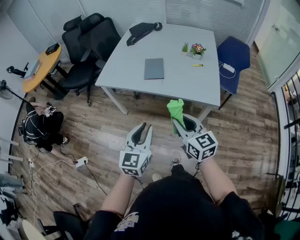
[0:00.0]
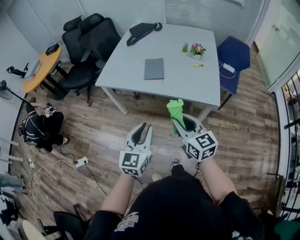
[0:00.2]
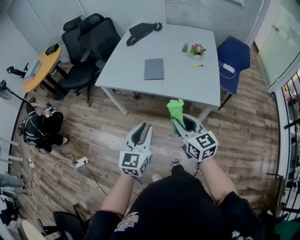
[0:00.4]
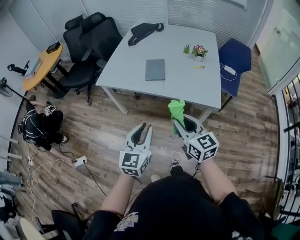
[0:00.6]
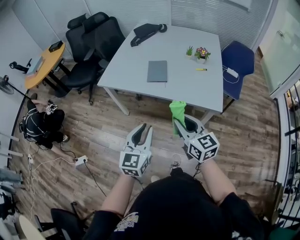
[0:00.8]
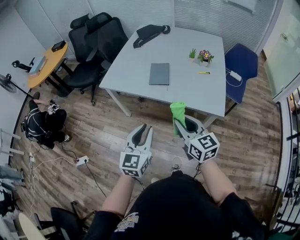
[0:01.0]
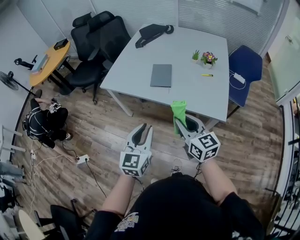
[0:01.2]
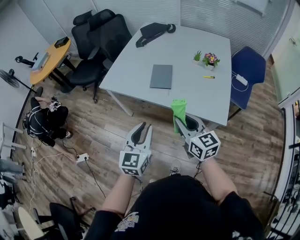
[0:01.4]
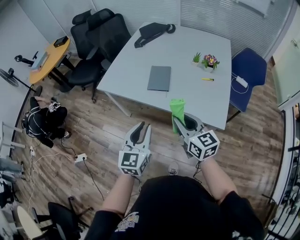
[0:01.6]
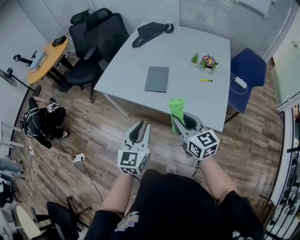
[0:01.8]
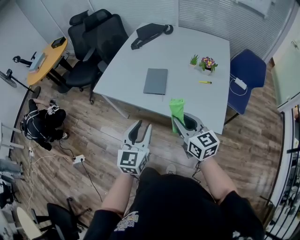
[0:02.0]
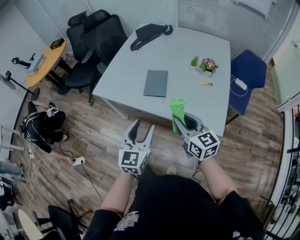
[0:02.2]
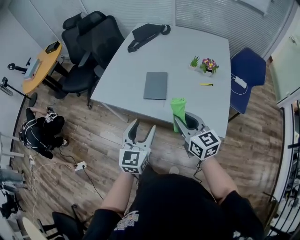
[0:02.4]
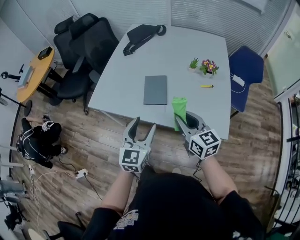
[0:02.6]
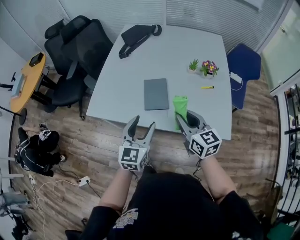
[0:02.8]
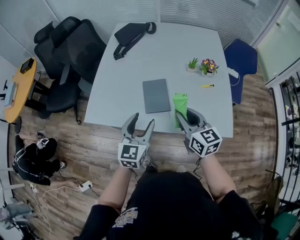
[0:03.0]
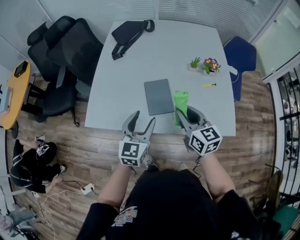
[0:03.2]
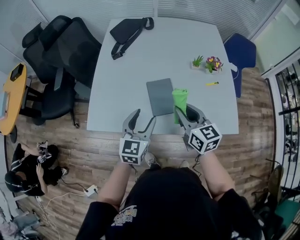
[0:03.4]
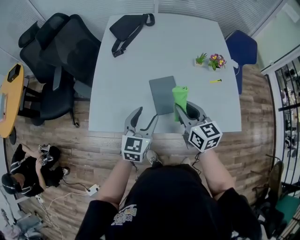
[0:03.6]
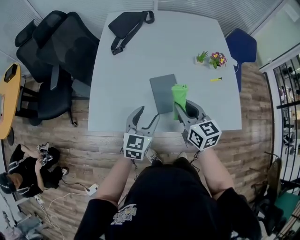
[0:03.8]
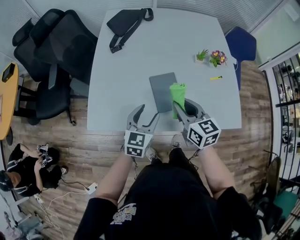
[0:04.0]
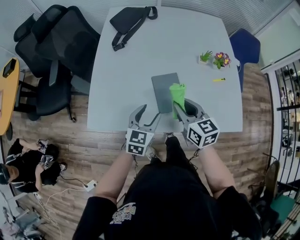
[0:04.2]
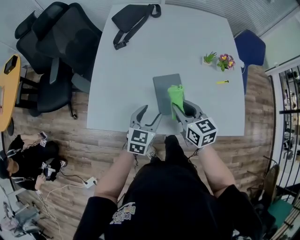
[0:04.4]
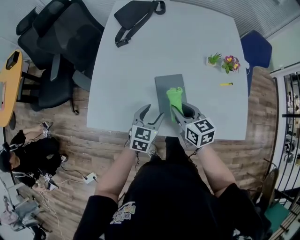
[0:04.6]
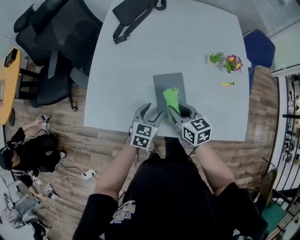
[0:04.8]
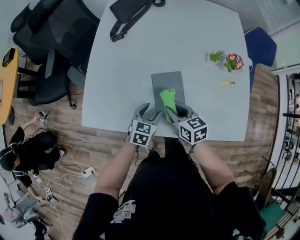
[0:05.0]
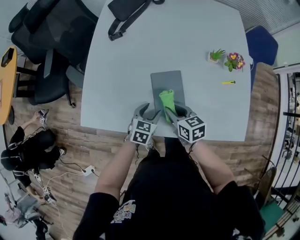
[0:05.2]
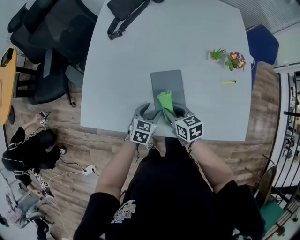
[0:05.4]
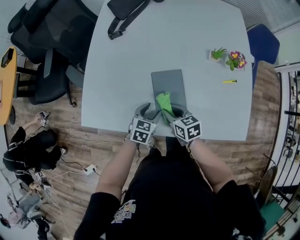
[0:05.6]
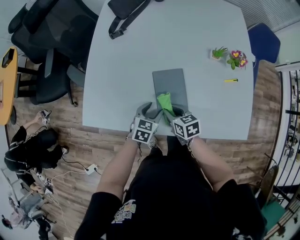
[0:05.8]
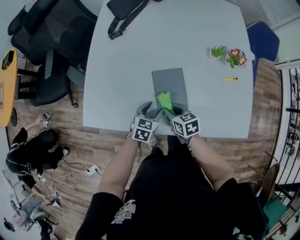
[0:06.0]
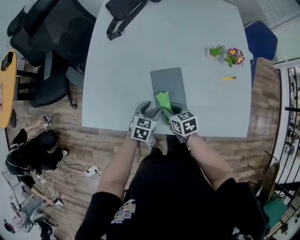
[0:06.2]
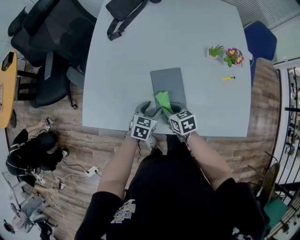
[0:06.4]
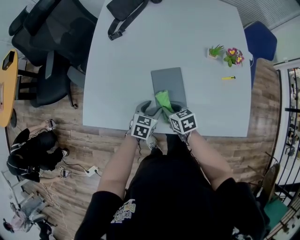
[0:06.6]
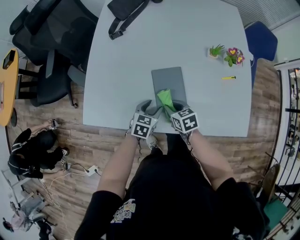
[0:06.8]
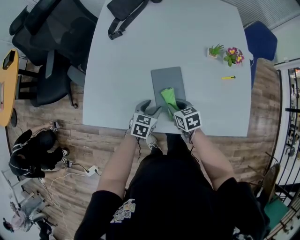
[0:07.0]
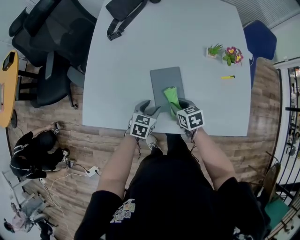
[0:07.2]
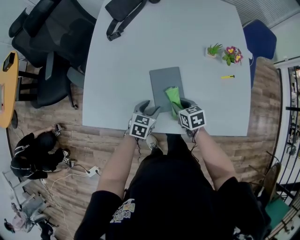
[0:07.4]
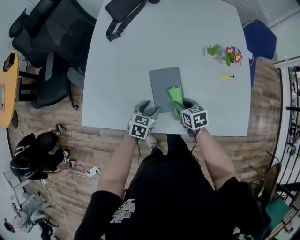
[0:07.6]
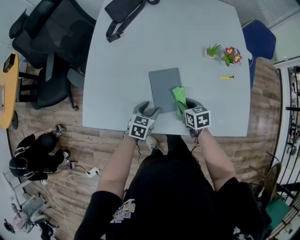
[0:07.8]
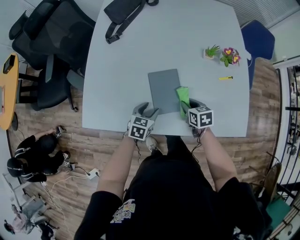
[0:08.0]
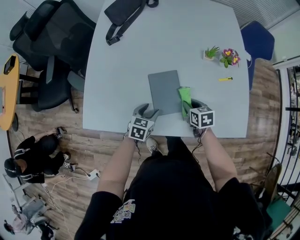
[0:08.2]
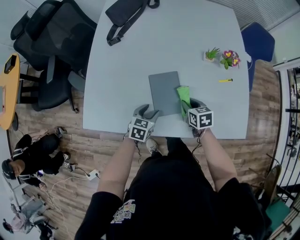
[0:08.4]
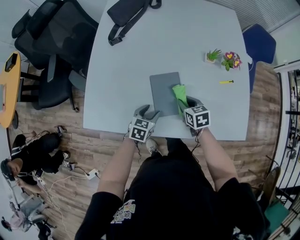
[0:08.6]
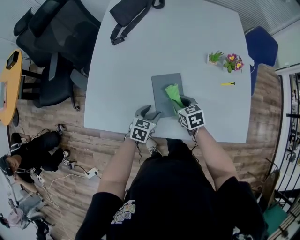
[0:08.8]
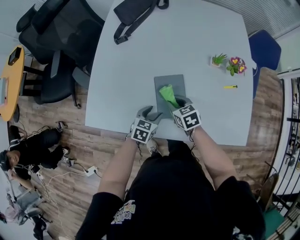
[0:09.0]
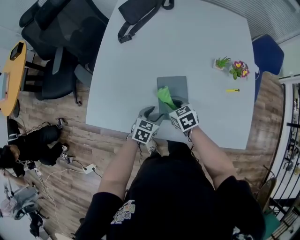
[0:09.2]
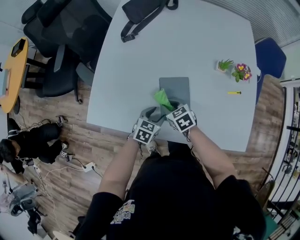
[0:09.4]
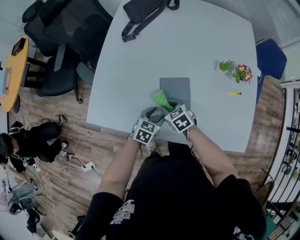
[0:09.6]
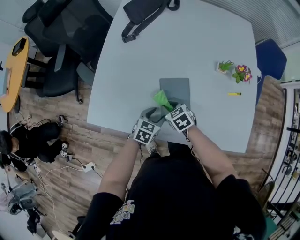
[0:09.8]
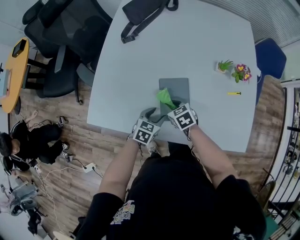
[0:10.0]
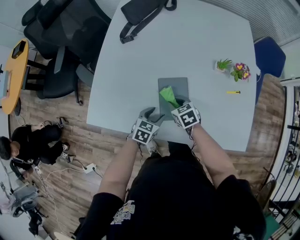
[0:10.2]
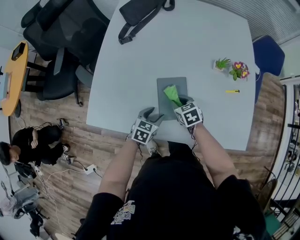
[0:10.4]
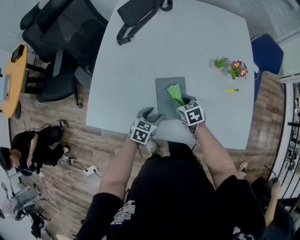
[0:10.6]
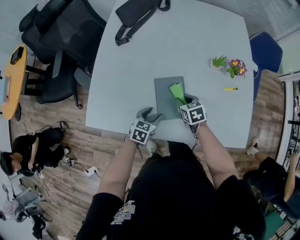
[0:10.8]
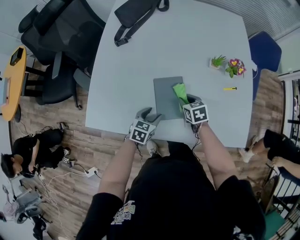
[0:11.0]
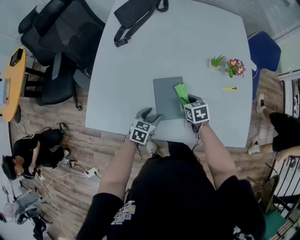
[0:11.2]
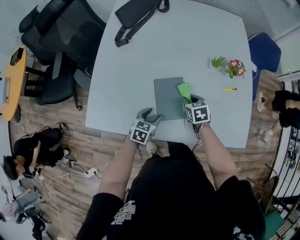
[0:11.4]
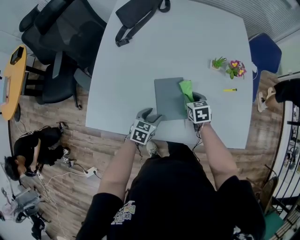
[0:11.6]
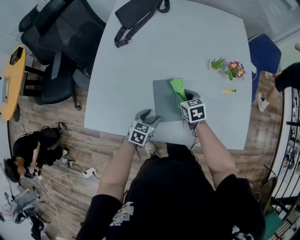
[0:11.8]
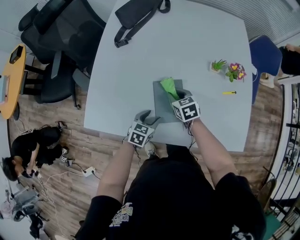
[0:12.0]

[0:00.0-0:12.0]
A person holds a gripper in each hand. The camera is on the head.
0:00.0 to 0:01.6: Both grippers move forward, roughly 10 cm.
0:01.6 to 0:03.0: The grippers both shift forward by approximately 20 cm. The left gripper opens.
0:03.0 to 0:04.4: The right gripper is displaced to the left, forward and downward by roughly 15 cm; the left gripper shifts roughly 15 cm downward, forward and to the left.
0:04.4 to 0:06.0: Both grippers move downward, about 15 cm. The right gripper changes its angle by about 20 degrees.
0:06.0 to 0:07.6: The right gripper heads to the right, covering about 5 cm.
0:07.6 to 0:09.0: The right gripper moves to the left, some 5 cm.
0:09.0 to 0:10.4: The grippers make only small movements.
0:10.4 to 0:12.0: The right gripper moves approximately 10 cm to the right and comes back.

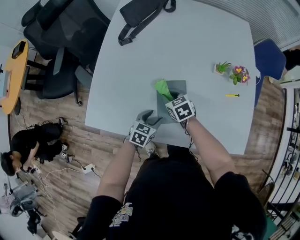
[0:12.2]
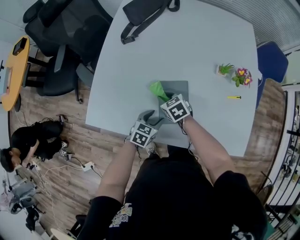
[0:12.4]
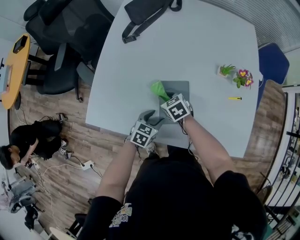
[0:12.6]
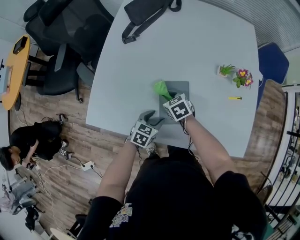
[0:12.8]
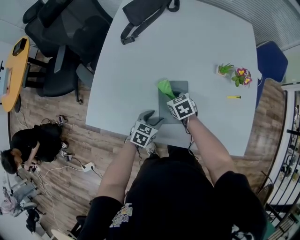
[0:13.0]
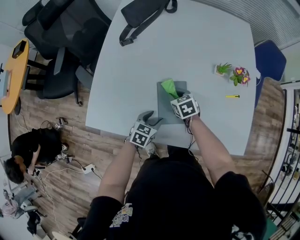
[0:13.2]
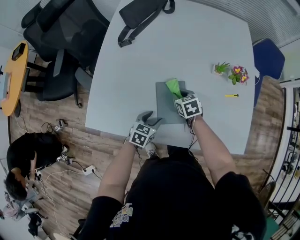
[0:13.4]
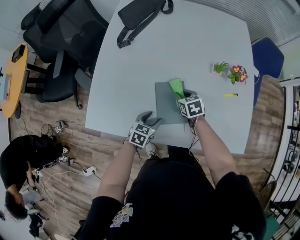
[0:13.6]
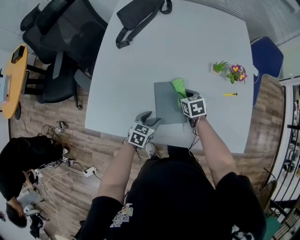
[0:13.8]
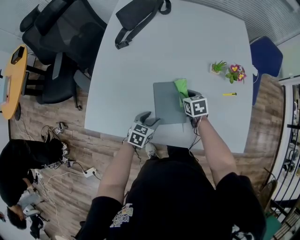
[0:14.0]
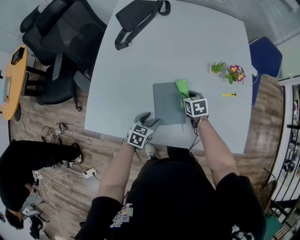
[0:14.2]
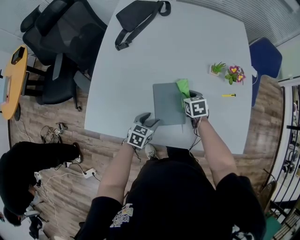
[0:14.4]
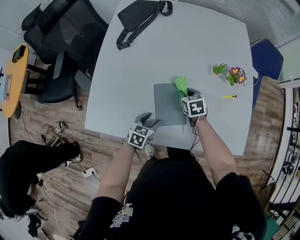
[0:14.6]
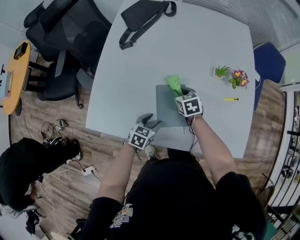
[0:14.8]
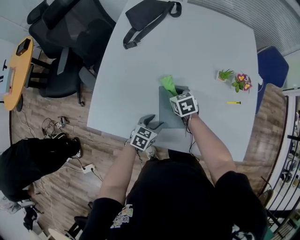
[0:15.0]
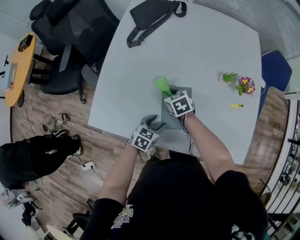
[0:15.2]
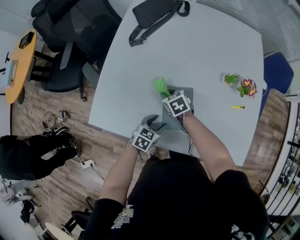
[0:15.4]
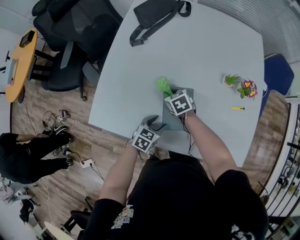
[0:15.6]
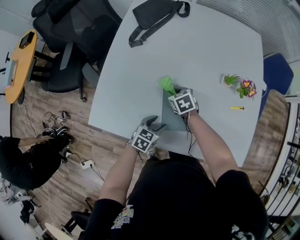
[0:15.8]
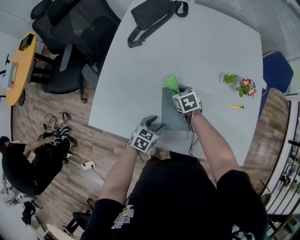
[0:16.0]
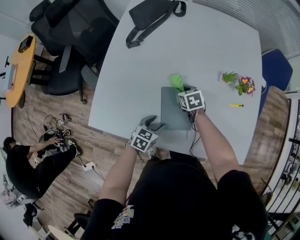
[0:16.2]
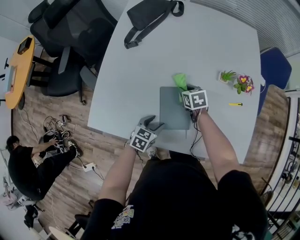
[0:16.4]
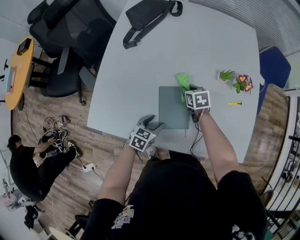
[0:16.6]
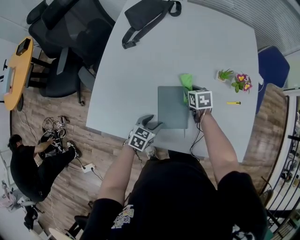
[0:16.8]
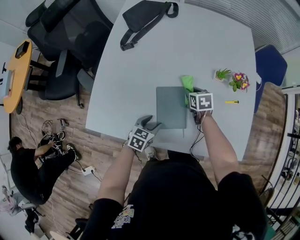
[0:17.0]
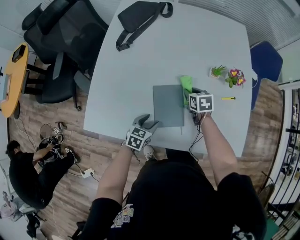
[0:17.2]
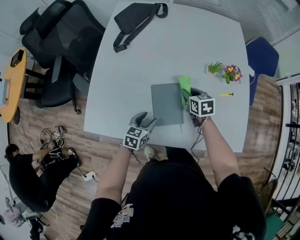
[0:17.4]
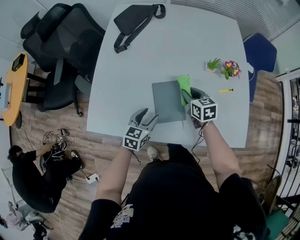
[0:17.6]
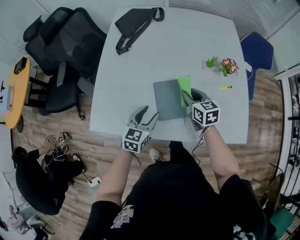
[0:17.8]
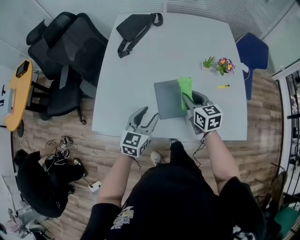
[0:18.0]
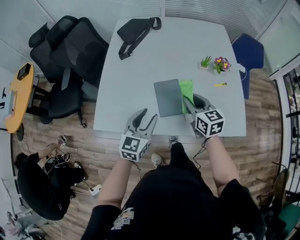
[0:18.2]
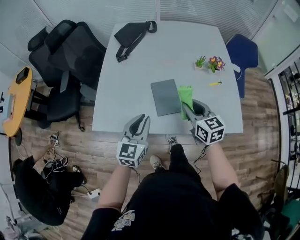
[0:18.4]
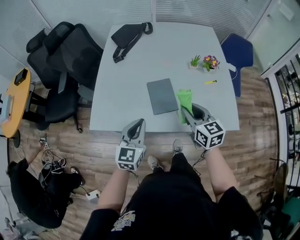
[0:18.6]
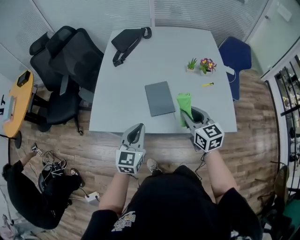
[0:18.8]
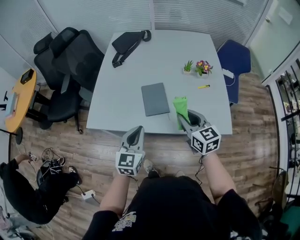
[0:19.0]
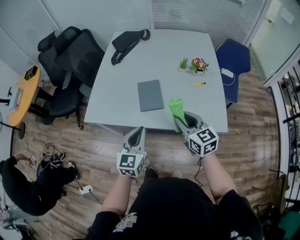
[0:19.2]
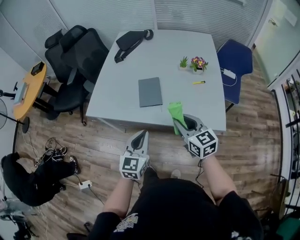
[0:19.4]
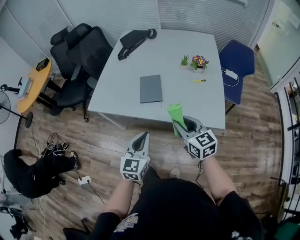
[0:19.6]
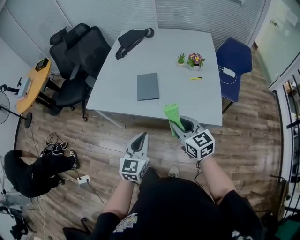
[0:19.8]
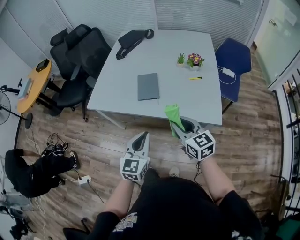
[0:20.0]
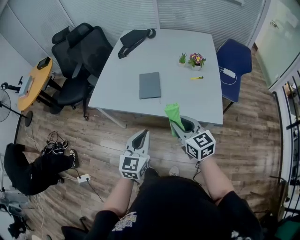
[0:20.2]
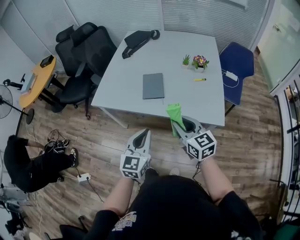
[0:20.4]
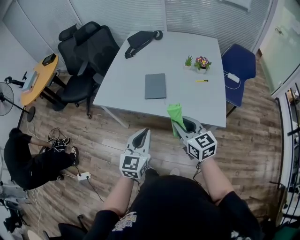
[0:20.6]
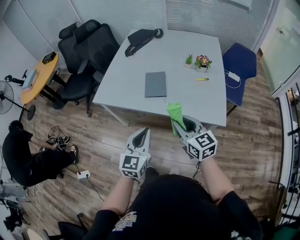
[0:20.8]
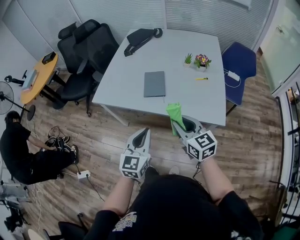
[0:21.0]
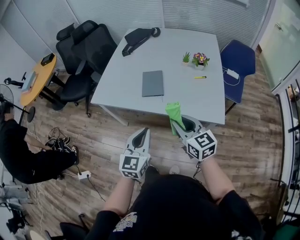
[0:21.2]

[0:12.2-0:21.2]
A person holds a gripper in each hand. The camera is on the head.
0:12.2 to 0:13.8: The right gripper moves to the right, about 10 cm.
0:13.8 to 0:15.2: The right gripper heads to the left, covering approximately 10 cm.
0:15.2 to 0:16.6: The right gripper travels to the right by some 10 cm.
0:16.6 to 0:18.2: The right gripper heads upward and backward, covering approximately 25 cm, and angles its fingers upward, by approximately 30 degrees, while the left gripper shifts about 20 cm upward, and swivels approximately 30 degrees.
0:18.2 to 0:19.8: The right gripper is displaced backward by some 25 cm, while the left gripper shifts about 30 cm backward and to the right, and closes its fingers.
0:19.8 to 0:21.2: The grippers make only small movements.

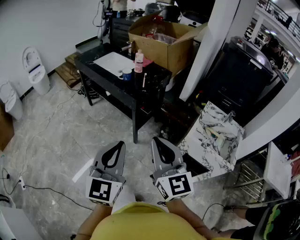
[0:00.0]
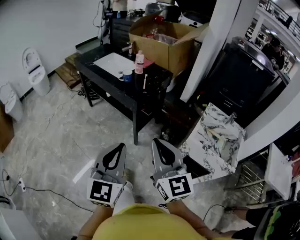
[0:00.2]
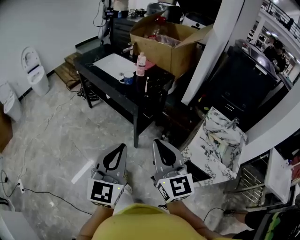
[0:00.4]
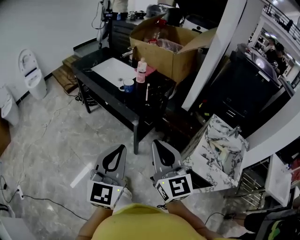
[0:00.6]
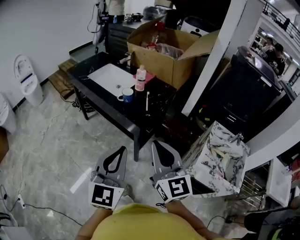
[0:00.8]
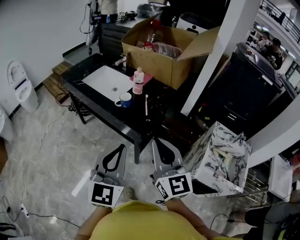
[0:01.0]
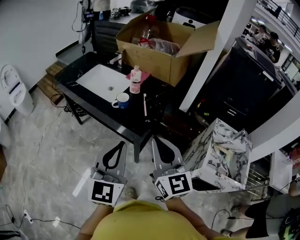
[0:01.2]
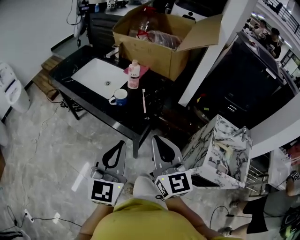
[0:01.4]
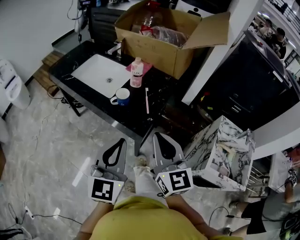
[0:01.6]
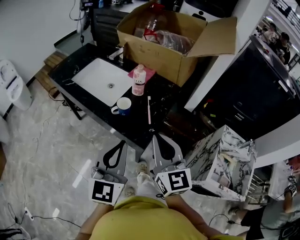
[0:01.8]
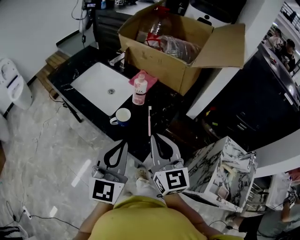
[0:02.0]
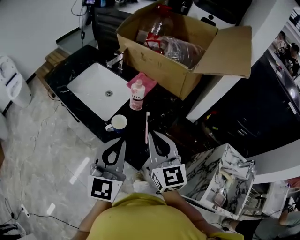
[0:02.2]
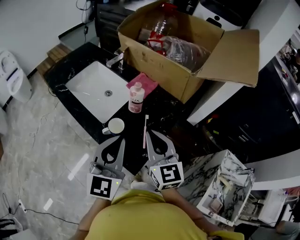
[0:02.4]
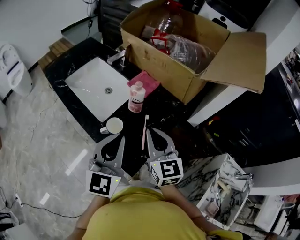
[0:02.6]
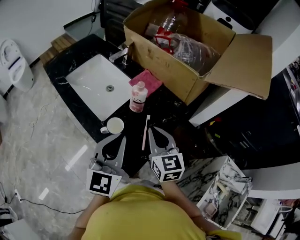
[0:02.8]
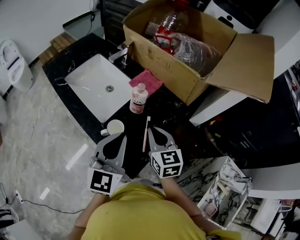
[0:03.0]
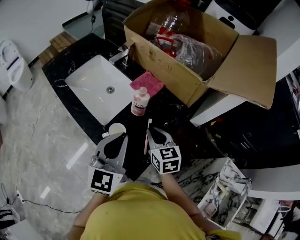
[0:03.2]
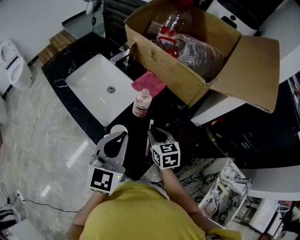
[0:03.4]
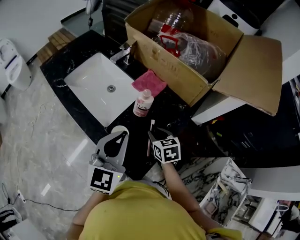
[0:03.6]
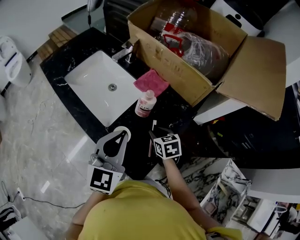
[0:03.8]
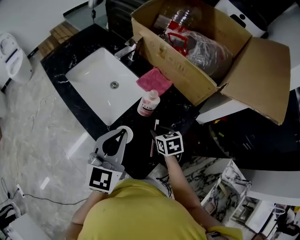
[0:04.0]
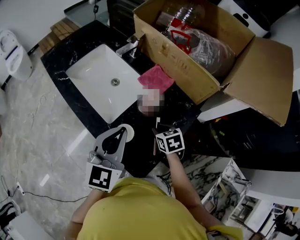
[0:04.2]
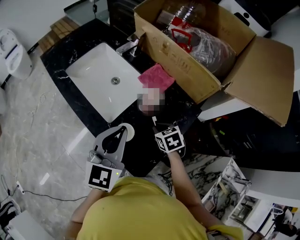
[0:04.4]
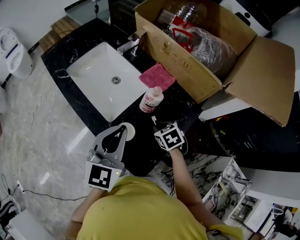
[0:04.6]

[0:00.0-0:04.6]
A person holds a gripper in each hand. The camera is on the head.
0:00.0 to 0:01.6: The grippers both shift forward by roughly 35 cm.
0:01.6 to 0:03.0: The left gripper is displaced forward by approximately 25 cm. The right gripper is displaced forward and downward by roughly 30 cm, and rotates about 30 degrees.
0:03.0 to 0:04.6: The left gripper is displaced forward by about 5 cm. Meanwhile the right gripper moves downward, approximately 15 cm, and tips its fingers downward by approximately 40 degrees.
